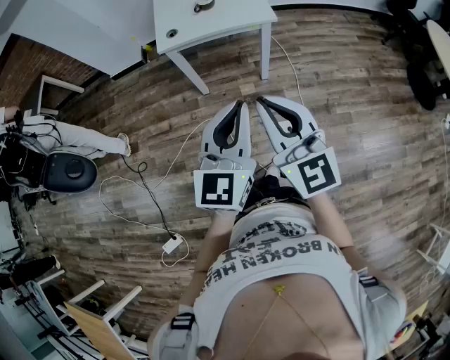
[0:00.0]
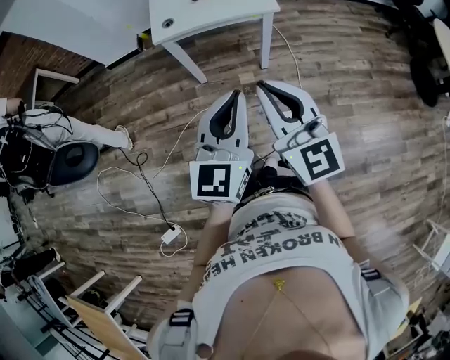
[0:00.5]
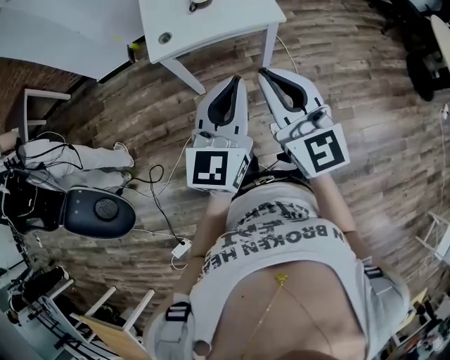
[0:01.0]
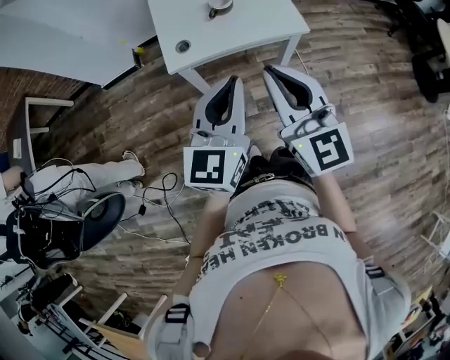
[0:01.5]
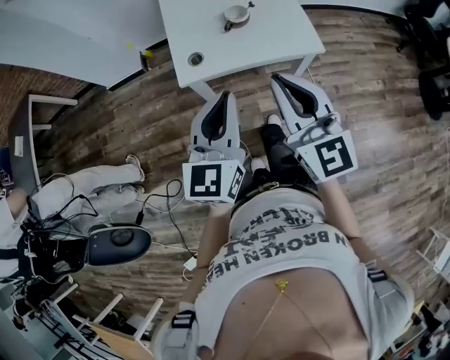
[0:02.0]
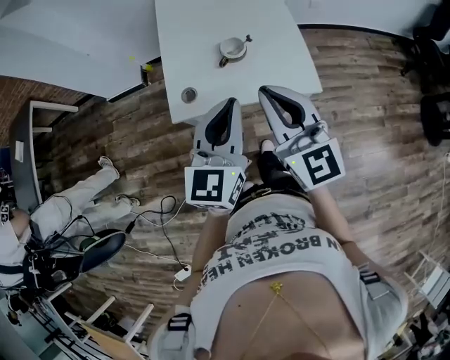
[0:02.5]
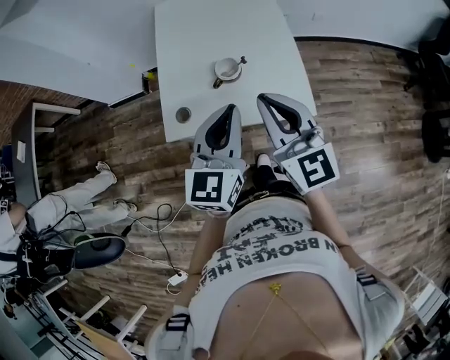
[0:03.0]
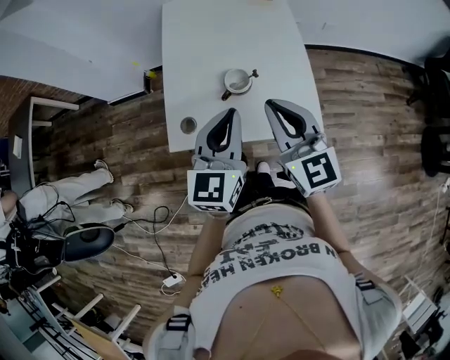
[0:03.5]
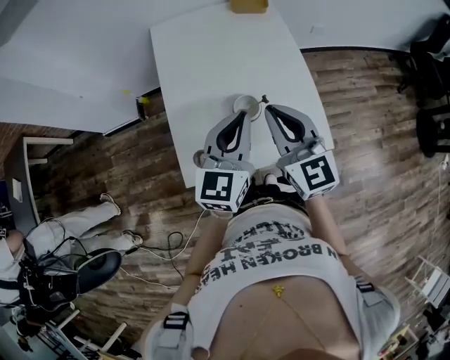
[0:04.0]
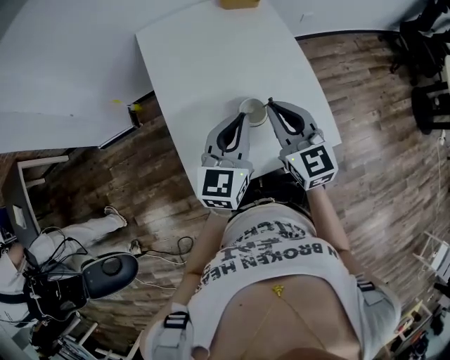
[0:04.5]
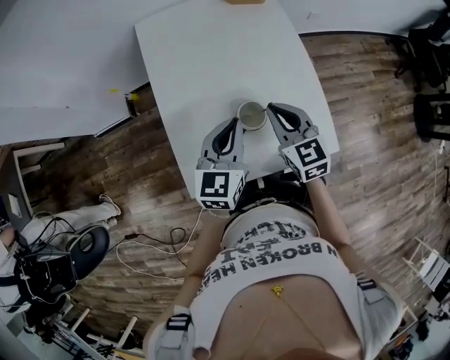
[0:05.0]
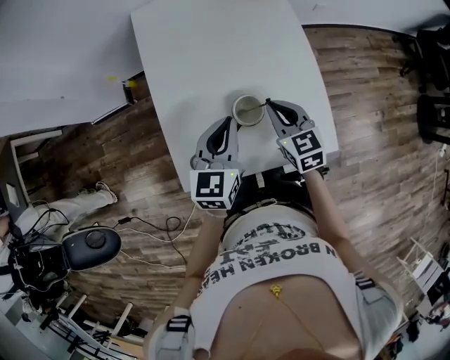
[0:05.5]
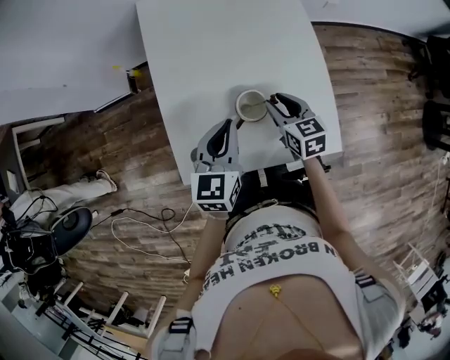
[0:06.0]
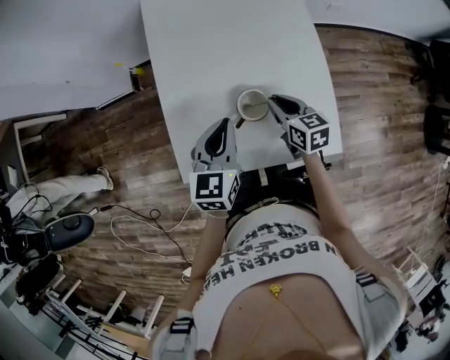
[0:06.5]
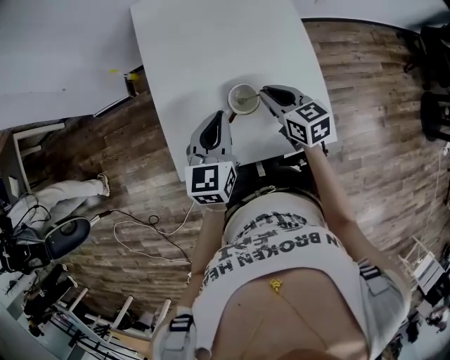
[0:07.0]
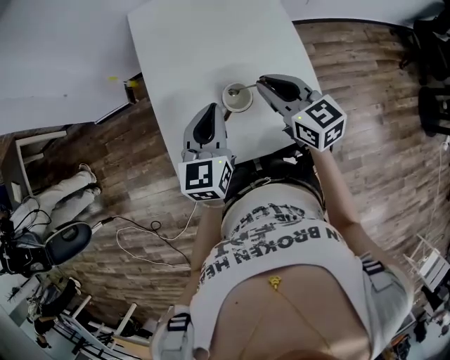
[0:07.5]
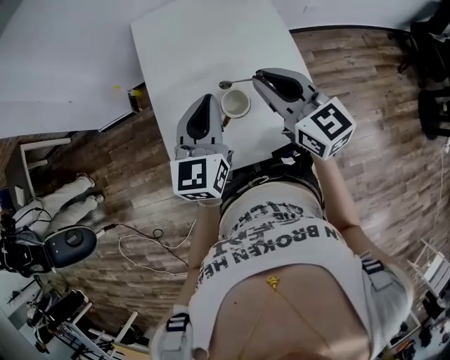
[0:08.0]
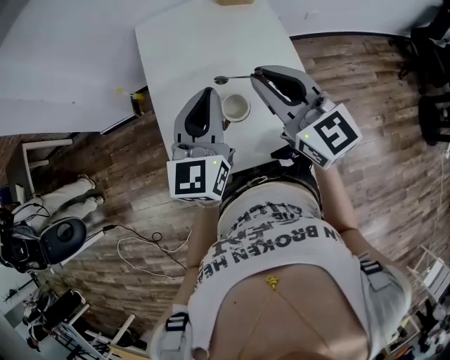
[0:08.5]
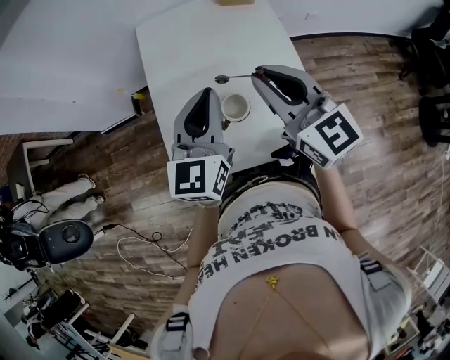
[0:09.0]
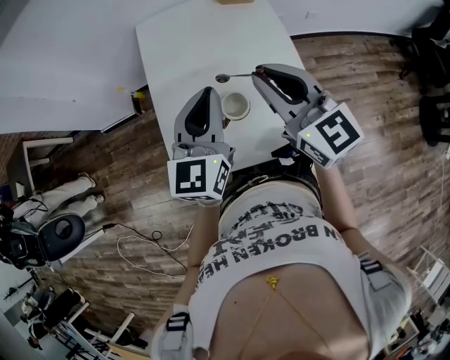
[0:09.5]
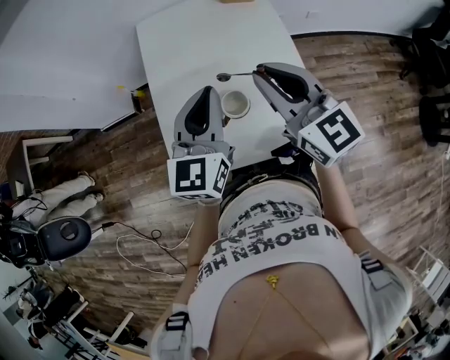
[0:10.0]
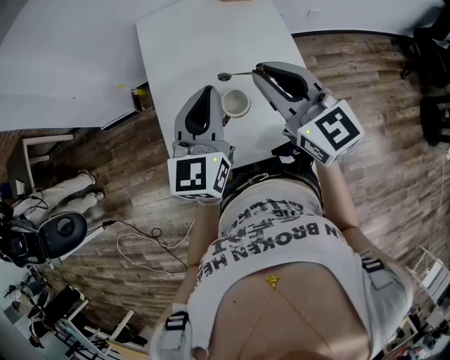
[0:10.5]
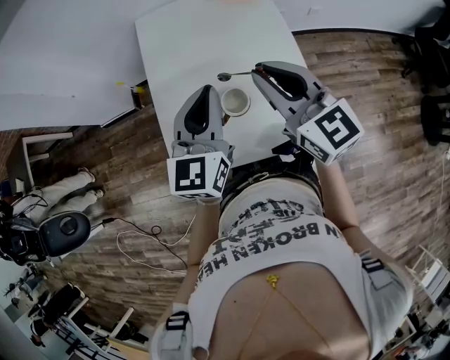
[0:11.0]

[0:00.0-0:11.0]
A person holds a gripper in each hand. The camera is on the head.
0:00.0 to 0:02.0: The right gripper travels forward by roughly 35 cm, while the left gripper is displaced forward and to the left by approximately 40 cm.
0:02.0 to 0:03.5: The left gripper shifts approximately 25 cm forward and to the right. The right gripper goes roughly 25 cm forward.
0:03.5 to 0:05.5: The right gripper travels downward and forward by some 25 cm, and rotates approximately 30 degrees. Meanwhile the left gripper moves forward, downward and to the left, roughly 20 cm.
0:05.5 to 0:07.5: The right gripper travels upward by approximately 10 cm, and opens, then closes once more.
0:07.5 to 0:09.0: Both grippers travel together upward, about 10 cm. The right gripper turns by about 20 degrees.
0:09.0 to 0:11.0: Both grippers stay about where they are.

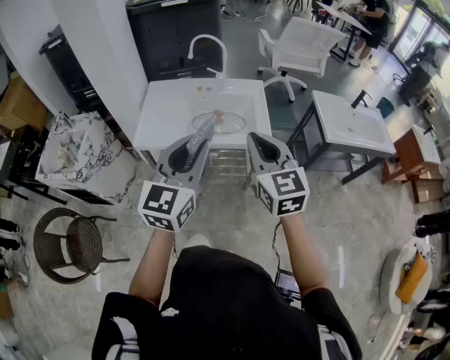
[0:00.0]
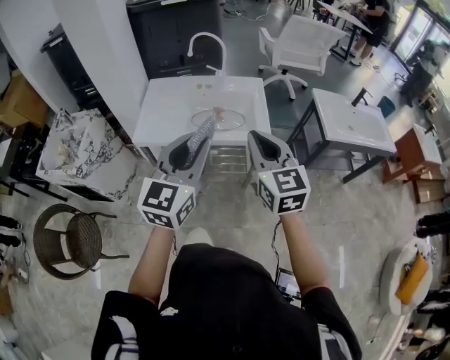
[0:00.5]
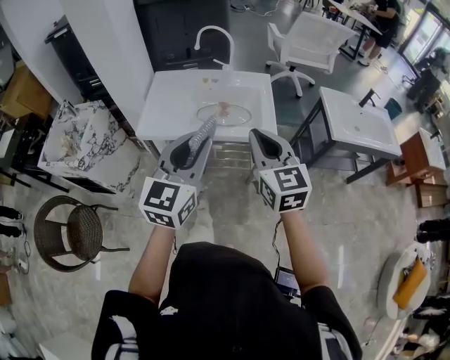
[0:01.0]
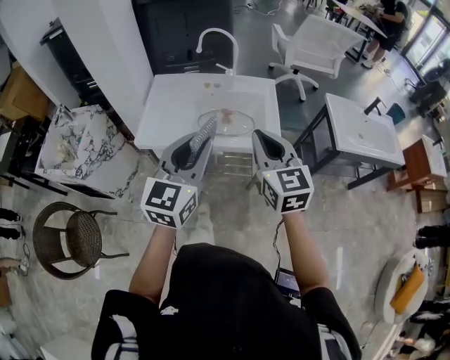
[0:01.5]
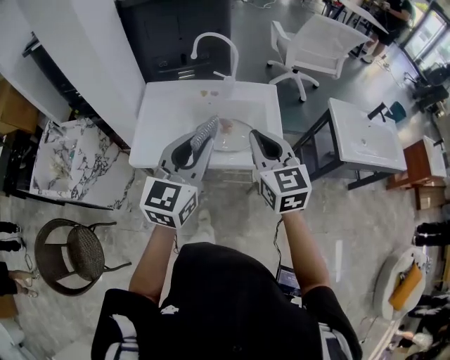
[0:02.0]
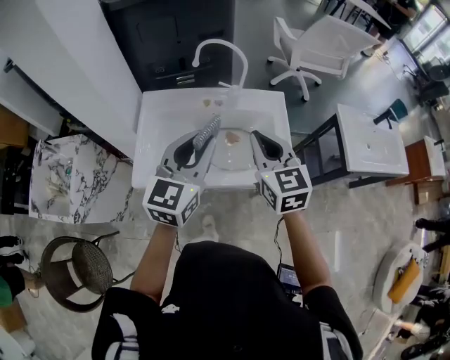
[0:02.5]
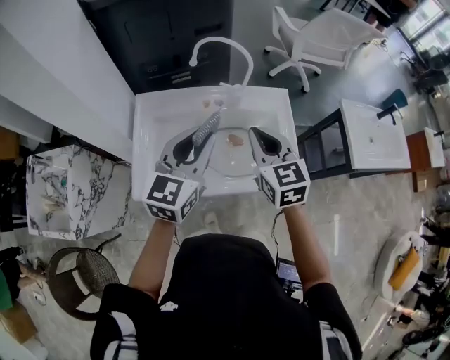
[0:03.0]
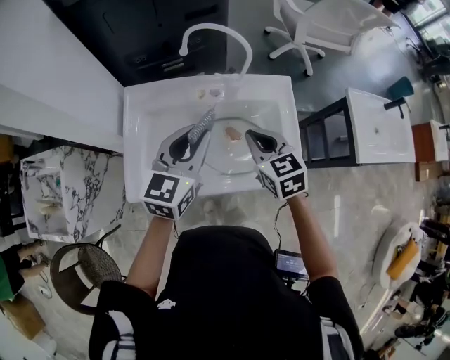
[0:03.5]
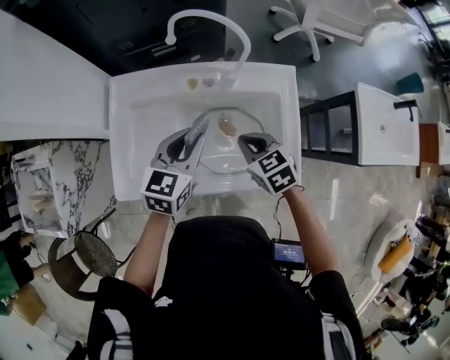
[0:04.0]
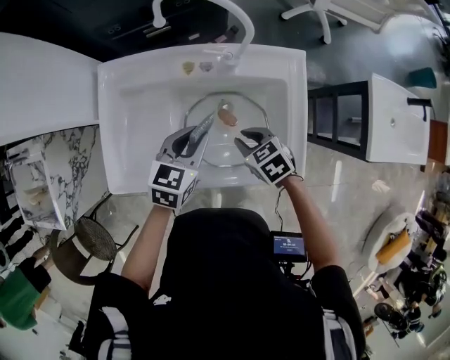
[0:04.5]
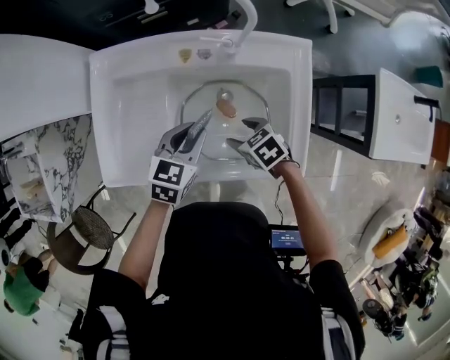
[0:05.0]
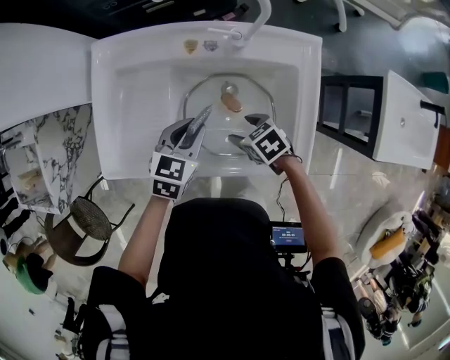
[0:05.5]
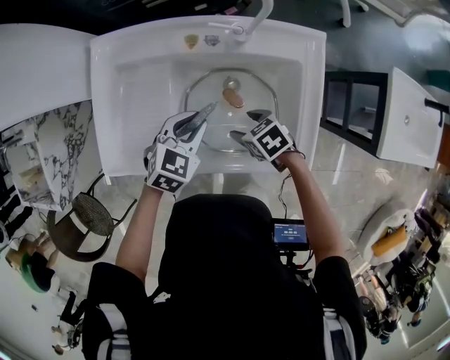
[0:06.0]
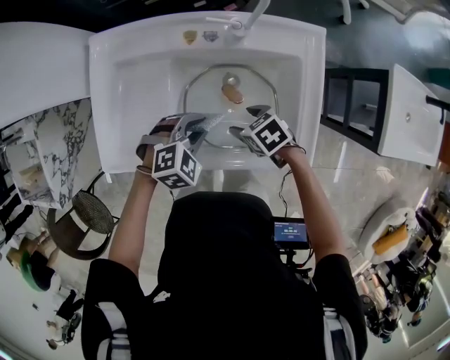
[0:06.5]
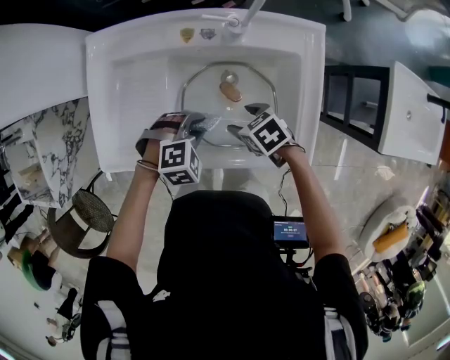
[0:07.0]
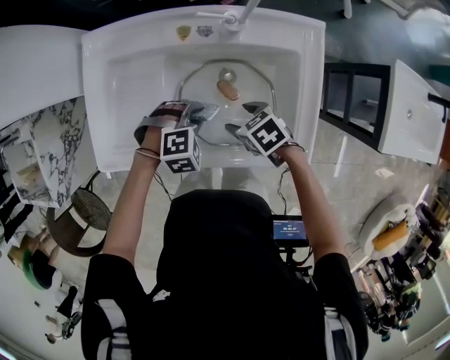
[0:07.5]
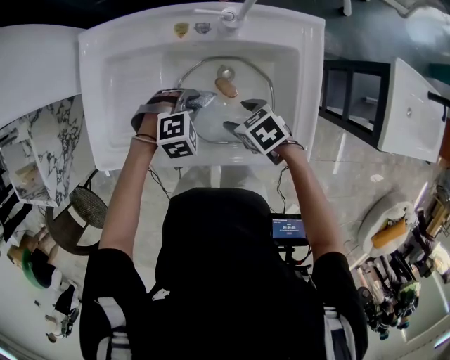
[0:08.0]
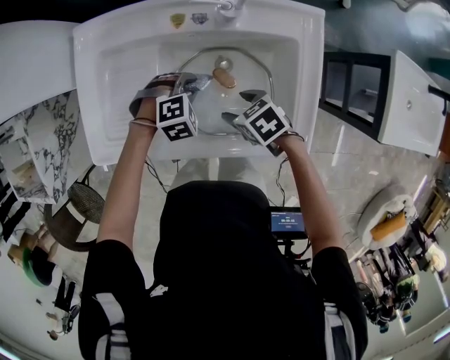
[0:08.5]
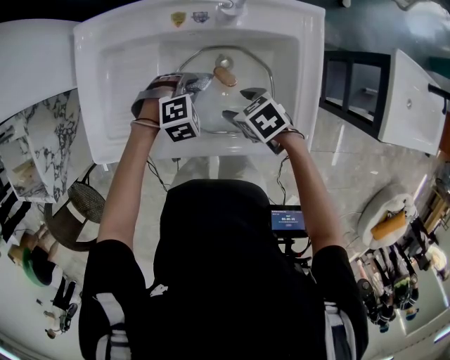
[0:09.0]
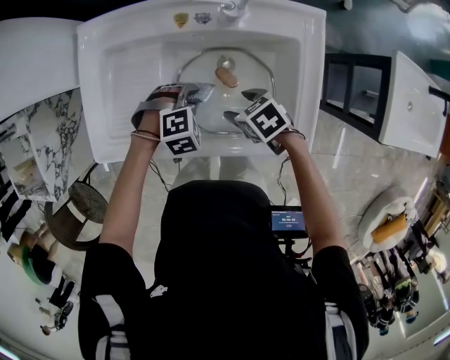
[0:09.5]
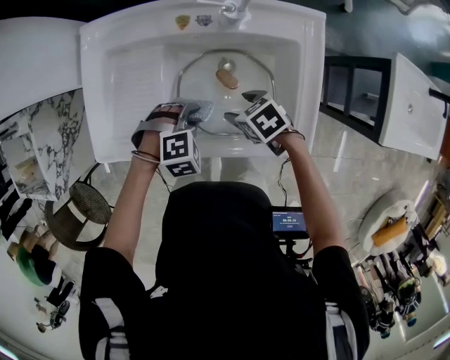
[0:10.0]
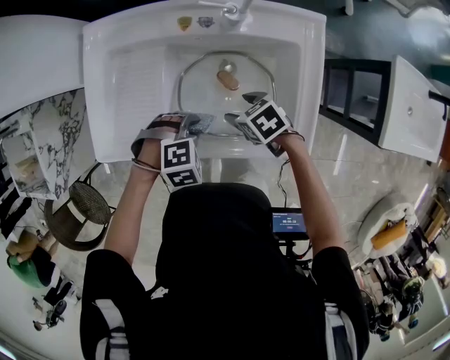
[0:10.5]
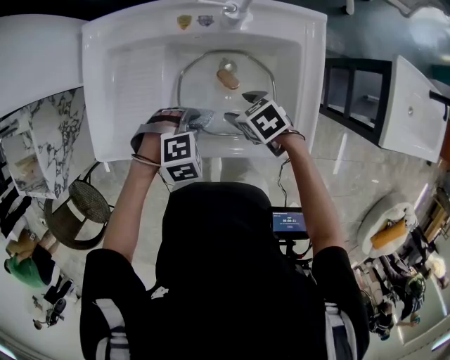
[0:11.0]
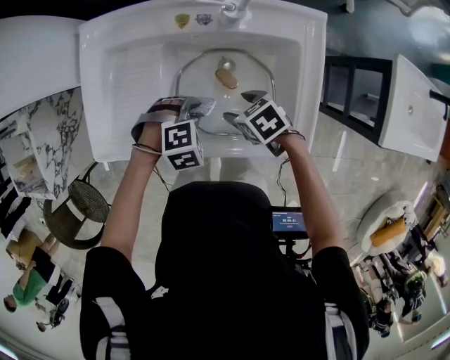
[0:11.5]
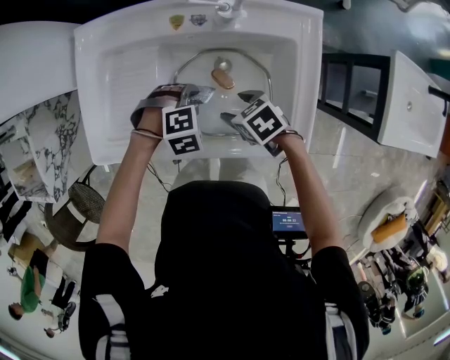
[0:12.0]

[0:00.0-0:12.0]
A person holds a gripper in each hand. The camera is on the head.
0:00.0 to 0:02.0: The grippers both shift forward by about 20 cm.
0:02.0 to 0:04.0: The right gripper heads downward and forward, covering about 35 cm, and angles its fingers downward, by approximately 40 degrees; the left gripper shifts approximately 35 cm forward and downward, and turns by approximately 30 degrees.
0:04.0 to 0:06.0: The two grippers go about 15 cm downward. The right gripper turns by roughly 30 degrees, and opens, while the left gripper turns by roughly 30 degrees.
0:06.0 to 0:08.0: The left gripper heads downward, covering about 10 cm, and changes its angle by roughly 50 degrees.
0:08.0 to 0:10.0: The left gripper shifts by some 5 cm.
0:10.0 to 0:12.0: There are only small adjustments of the grippers.

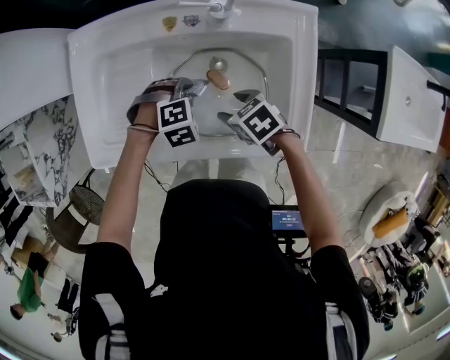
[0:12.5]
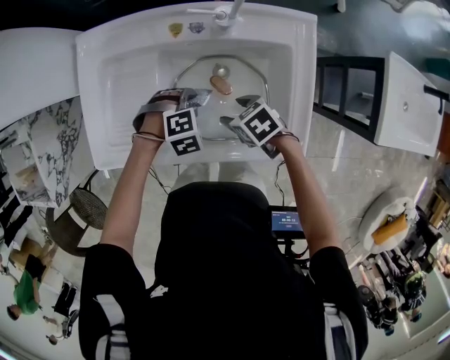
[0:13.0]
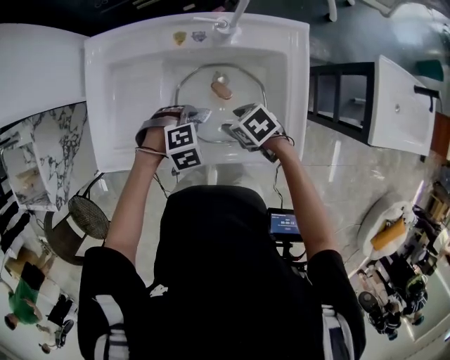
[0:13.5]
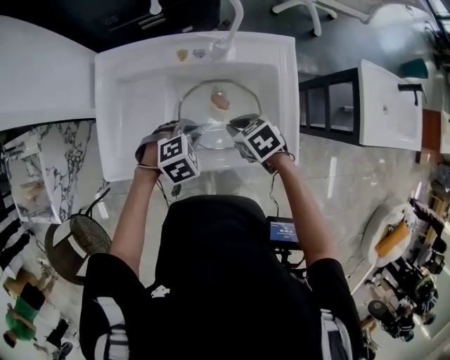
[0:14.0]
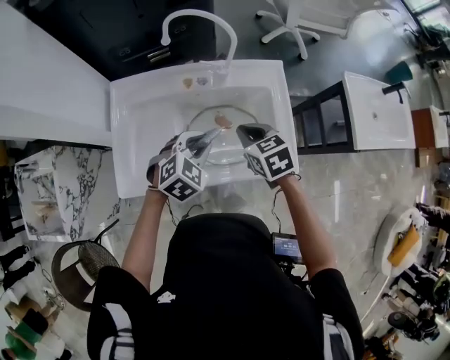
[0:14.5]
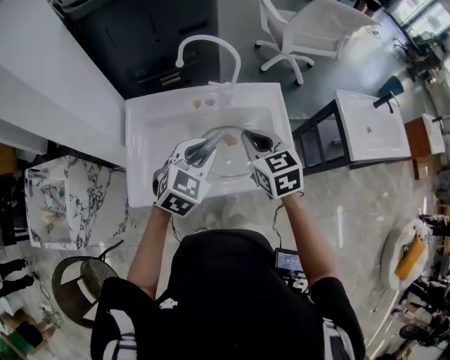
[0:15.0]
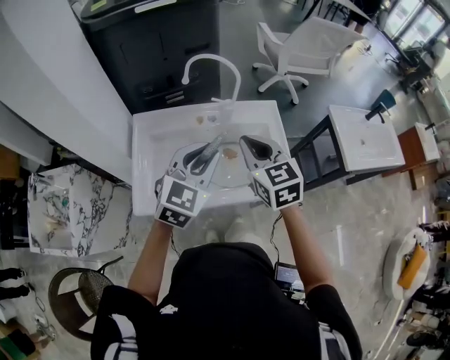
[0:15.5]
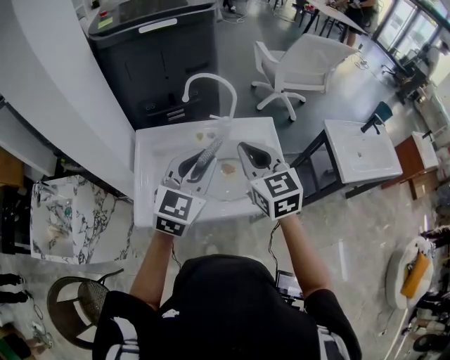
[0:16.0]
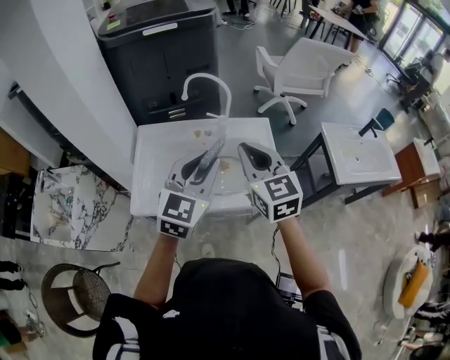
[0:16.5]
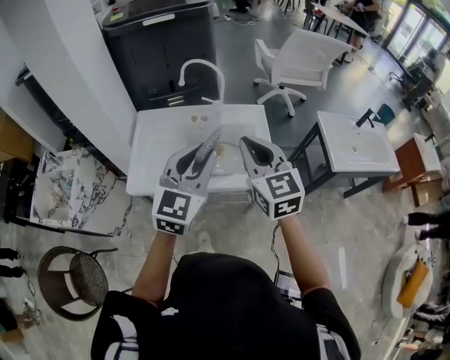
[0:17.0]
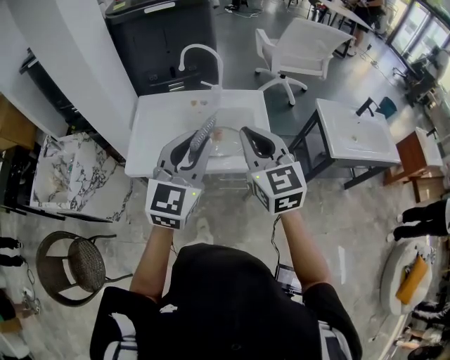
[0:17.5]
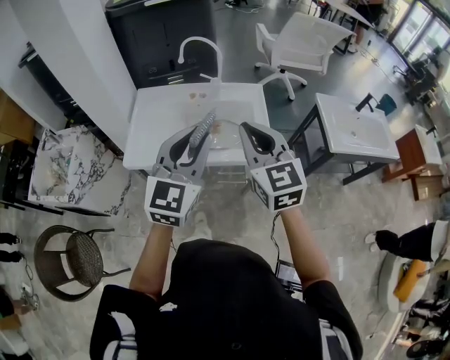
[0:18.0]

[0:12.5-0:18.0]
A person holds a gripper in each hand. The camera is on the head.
0:12.5 to 0:14.5: The two grippers go about 20 cm upward. The left gripper swivels roughly 30 degrees; the right gripper changes its angle by approximately 30 degrees, and closes.
0:14.5 to 0:16.0: Both grippers move upward, some 25 cm. The right gripper tips its fingers upward by about 30 degrees. The left gripper angles its fingers upward, by approximately 40 degrees.
0:16.0 to 0:18.0: Both grippers travel together backward and to the right, some 20 cm.
